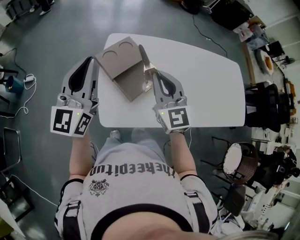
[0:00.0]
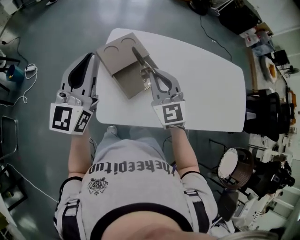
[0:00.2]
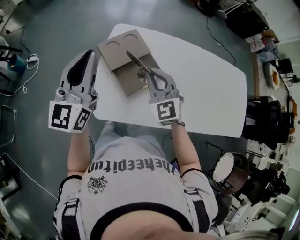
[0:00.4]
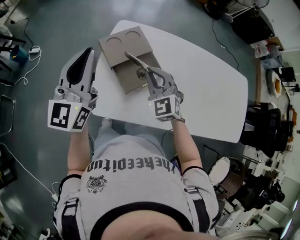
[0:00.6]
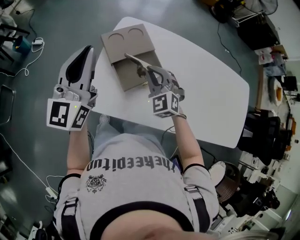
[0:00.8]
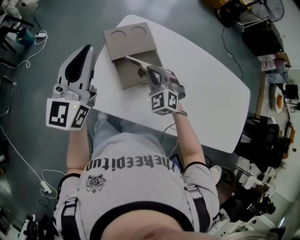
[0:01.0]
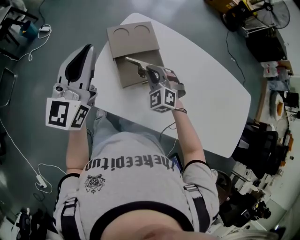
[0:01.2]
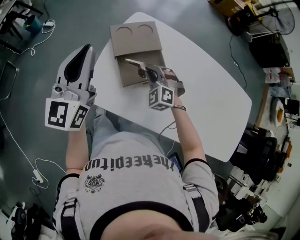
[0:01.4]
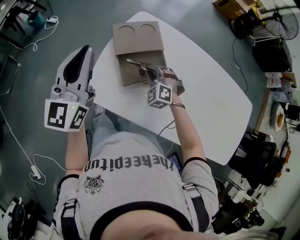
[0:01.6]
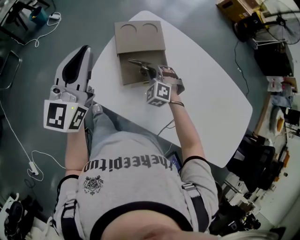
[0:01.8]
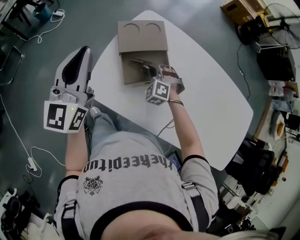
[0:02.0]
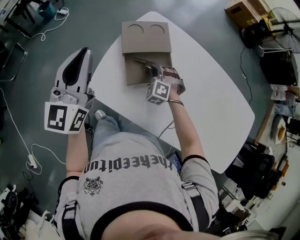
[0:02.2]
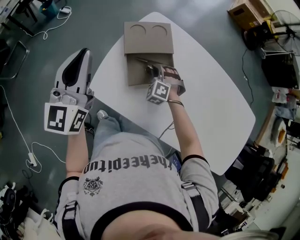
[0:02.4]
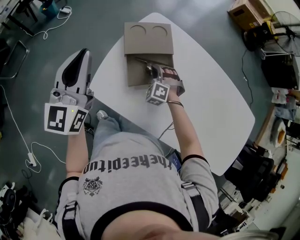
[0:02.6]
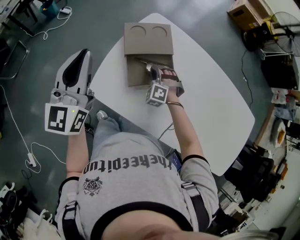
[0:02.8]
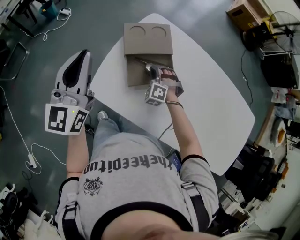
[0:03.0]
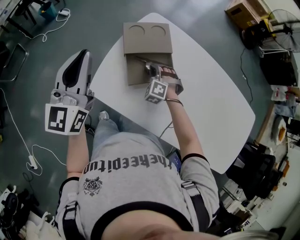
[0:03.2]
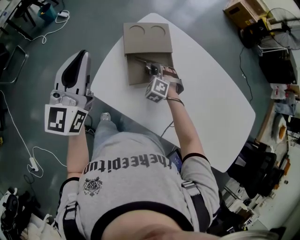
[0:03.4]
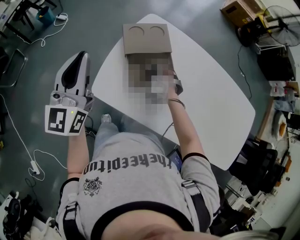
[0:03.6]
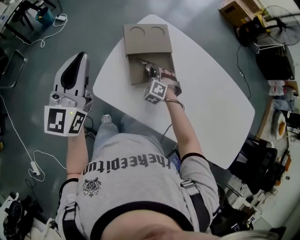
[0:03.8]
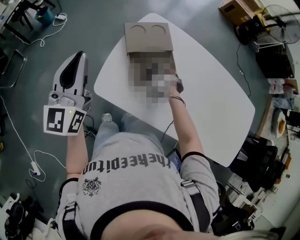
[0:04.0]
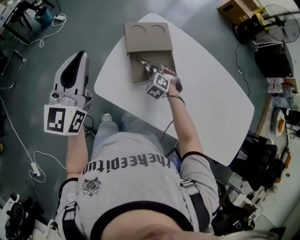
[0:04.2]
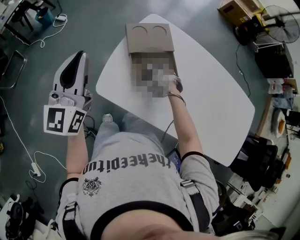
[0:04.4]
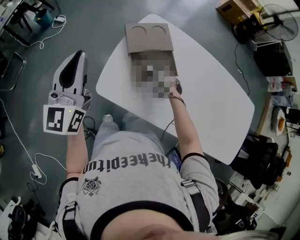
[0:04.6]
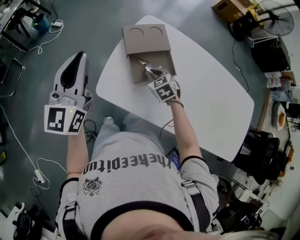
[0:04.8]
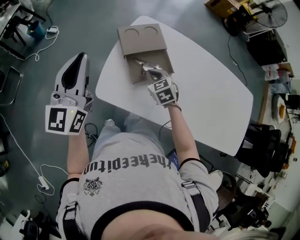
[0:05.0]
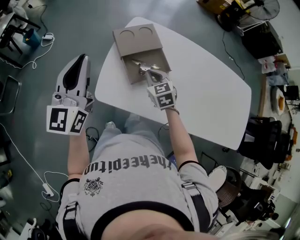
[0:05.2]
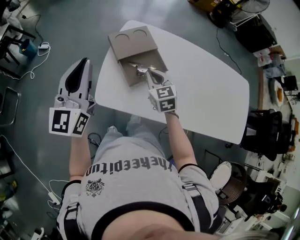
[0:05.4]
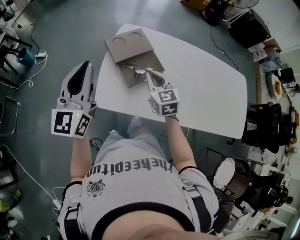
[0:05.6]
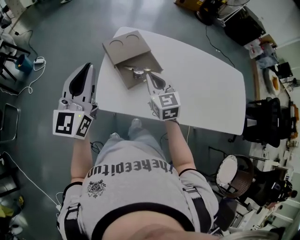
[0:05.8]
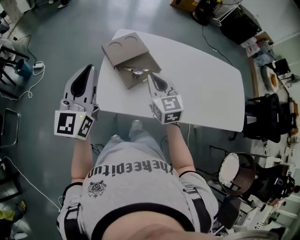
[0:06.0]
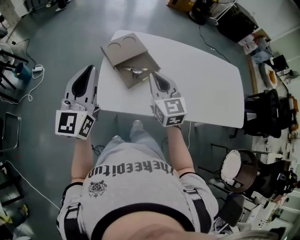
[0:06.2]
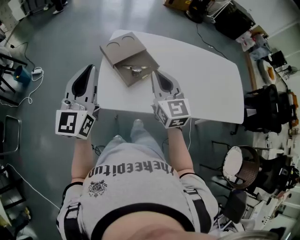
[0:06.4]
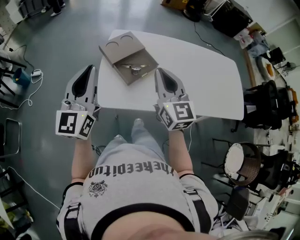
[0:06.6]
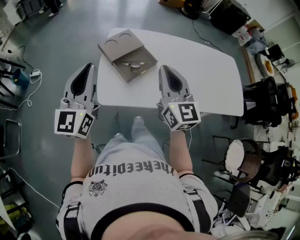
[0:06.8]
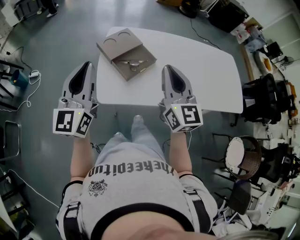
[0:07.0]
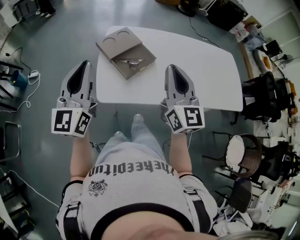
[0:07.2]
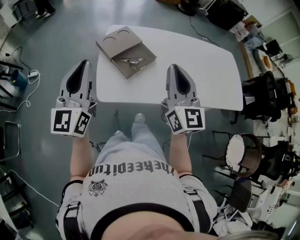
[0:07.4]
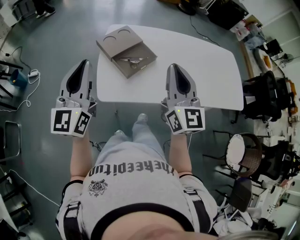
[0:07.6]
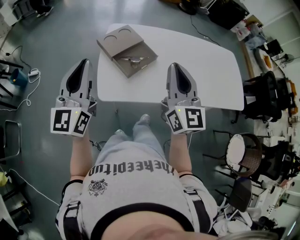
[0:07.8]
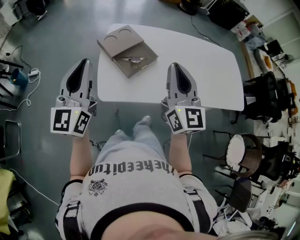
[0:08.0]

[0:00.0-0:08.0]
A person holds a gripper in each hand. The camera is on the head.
0:00.0 to 0:01.6: The left gripper moves approximately 5 cm, and turns by about 30 degrees. The right gripper shifts roughly 25 cm downward, and tilts its fingers about 40 degrees downward.
0:01.6 to 0:03.2: The right gripper travels downward by about 5 cm.
0:03.2 to 0:04.8: The left gripper shifts by approximately 5 cm; the right gripper shifts by roughly 5 cm, rolls clockwise, seen from behind, by about 50 degrees, and opens and closes again.
0:04.8 to 0:06.4: The right gripper is displaced upward and backward by approximately 30 cm, and angles its fingers upward, by about 40 degrees, while the left gripper is displaced backward by some 5 cm, and swivels roughly 20 degrees.
0:06.4 to 0:08.0: The right gripper shifts about 10 cm upward and backward.

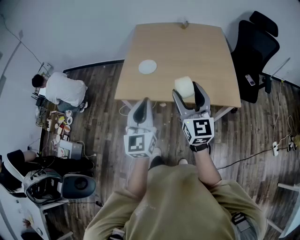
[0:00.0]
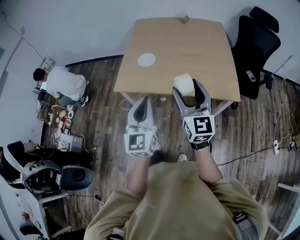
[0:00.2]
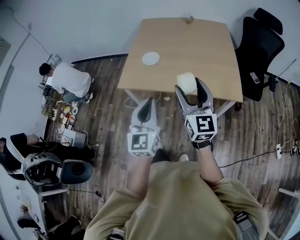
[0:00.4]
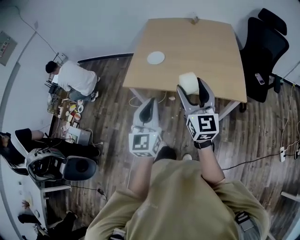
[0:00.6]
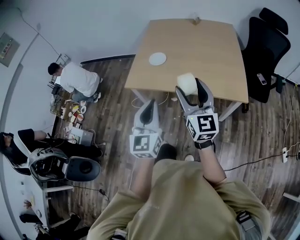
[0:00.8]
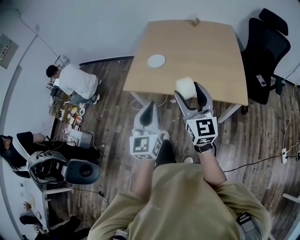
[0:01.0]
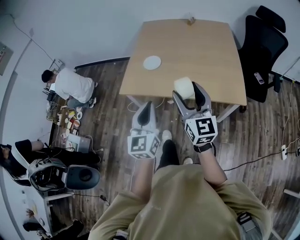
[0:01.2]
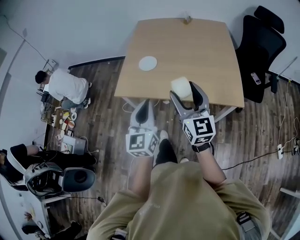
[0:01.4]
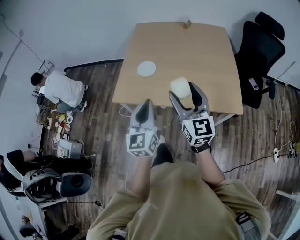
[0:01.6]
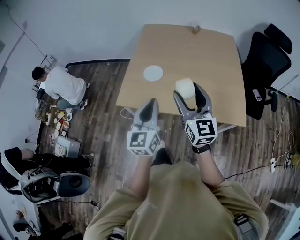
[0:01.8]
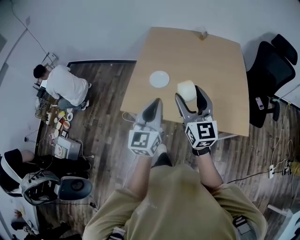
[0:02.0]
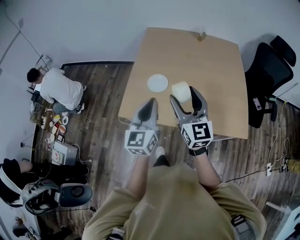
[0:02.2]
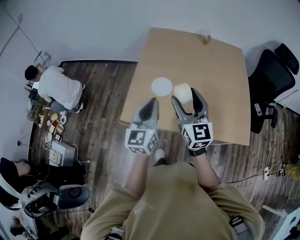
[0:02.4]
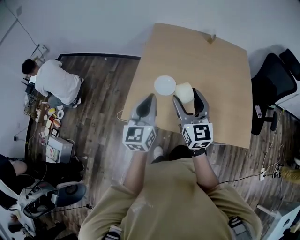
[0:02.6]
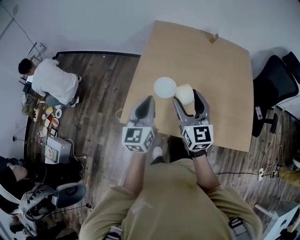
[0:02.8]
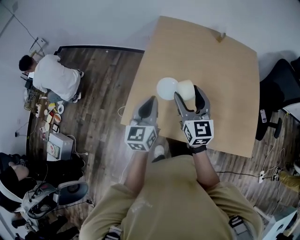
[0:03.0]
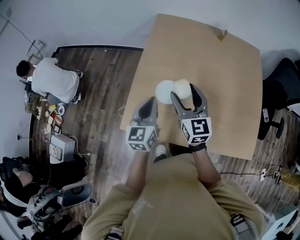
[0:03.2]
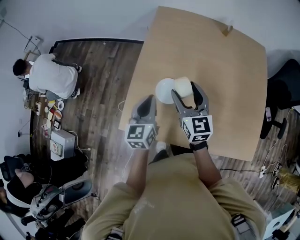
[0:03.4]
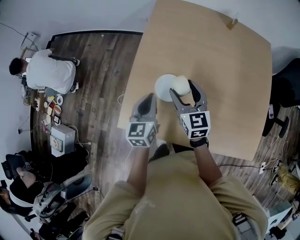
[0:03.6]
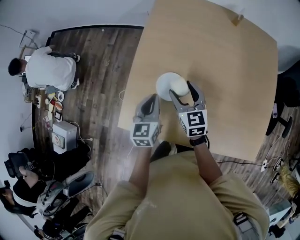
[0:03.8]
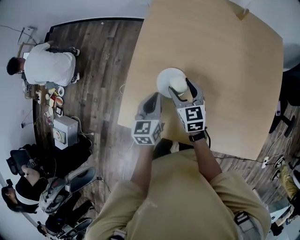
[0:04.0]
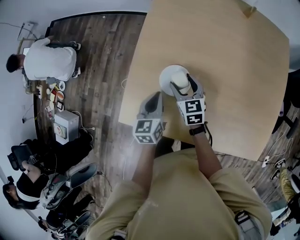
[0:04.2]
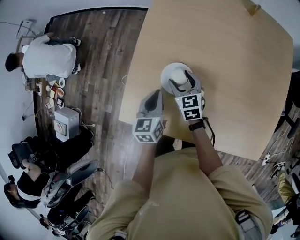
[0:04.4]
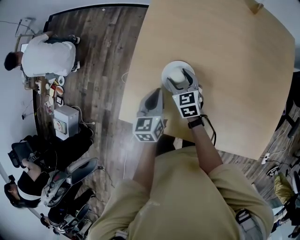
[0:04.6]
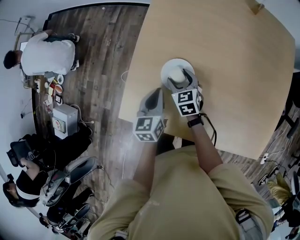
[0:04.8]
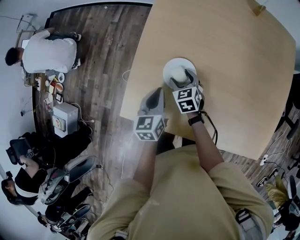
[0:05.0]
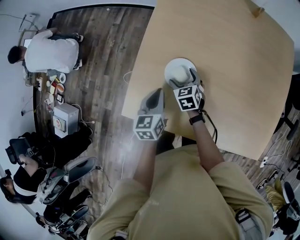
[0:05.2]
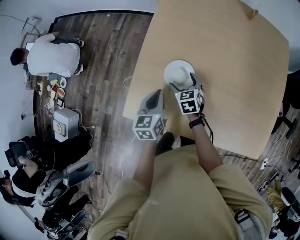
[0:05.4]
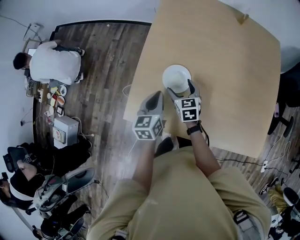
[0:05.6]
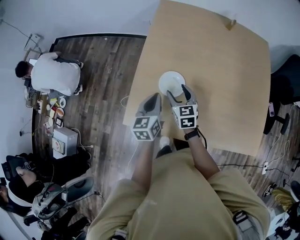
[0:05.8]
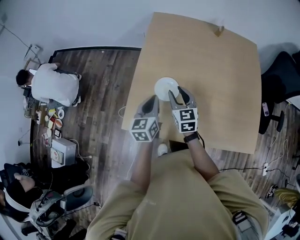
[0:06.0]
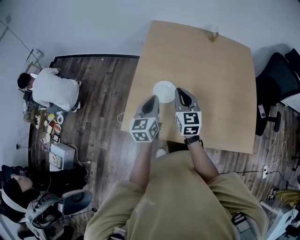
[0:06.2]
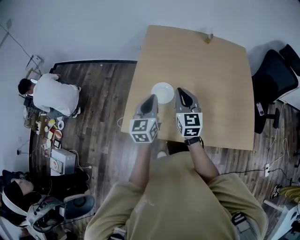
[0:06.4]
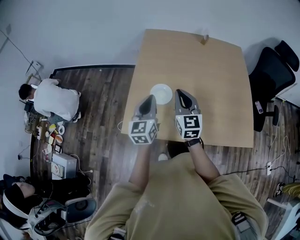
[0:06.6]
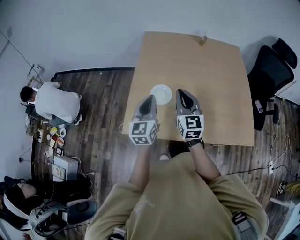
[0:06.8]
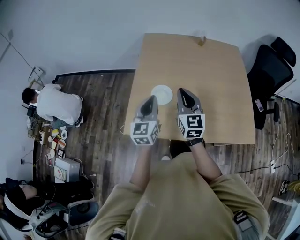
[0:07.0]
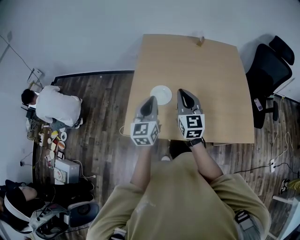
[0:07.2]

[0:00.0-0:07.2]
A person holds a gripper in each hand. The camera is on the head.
0:00.0 to 0:01.4: The left gripper moves about 10 cm backward and comes back.
0:01.4 to 0:02.8: The grippers both shift forward and to the left by roughly 35 cm.
0:02.8 to 0:04.4: Both grippers travel together downward and forward, approximately 35 cm. The right gripper tilts its fingers roughly 30 degrees downward. The left gripper swivels approximately 30 degrees.
0:04.4 to 0:05.8: The left gripper shifts some 10 cm upward. The right gripper is displaced upward and backward by approximately 10 cm.
0:05.8 to 0:07.2: The two grippers go about 20 cm upward and backward. The right gripper swivels roughly 30 degrees, and closes its fingers, while the left gripper changes its angle by approximately 20 degrees.

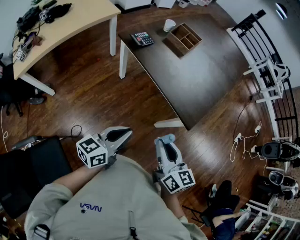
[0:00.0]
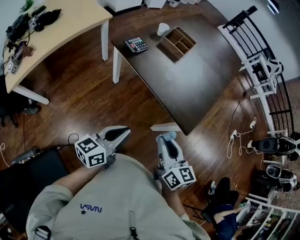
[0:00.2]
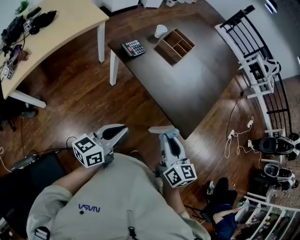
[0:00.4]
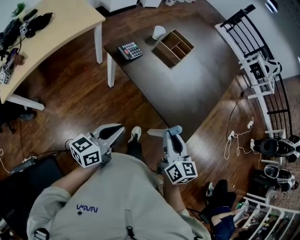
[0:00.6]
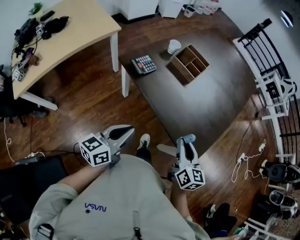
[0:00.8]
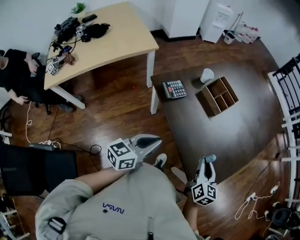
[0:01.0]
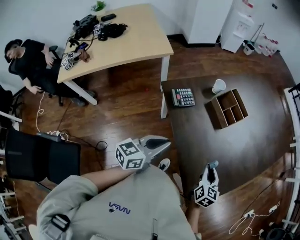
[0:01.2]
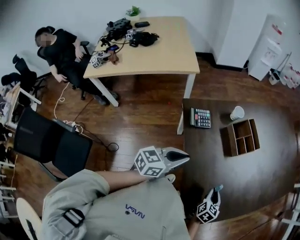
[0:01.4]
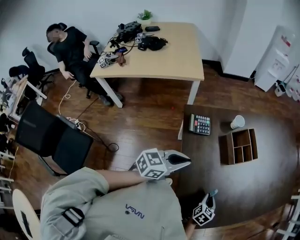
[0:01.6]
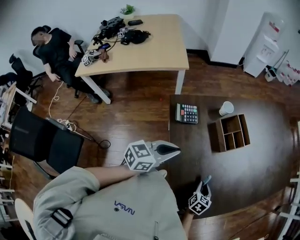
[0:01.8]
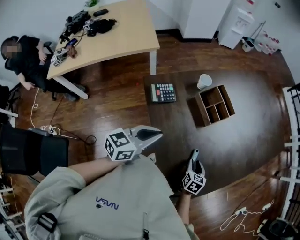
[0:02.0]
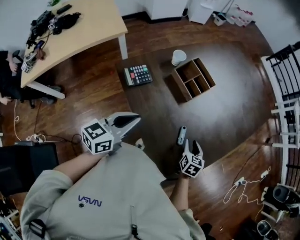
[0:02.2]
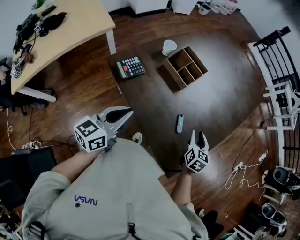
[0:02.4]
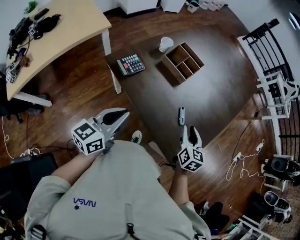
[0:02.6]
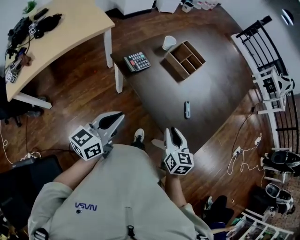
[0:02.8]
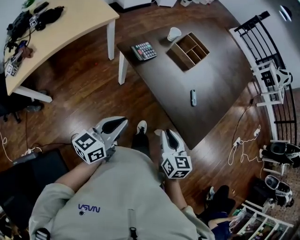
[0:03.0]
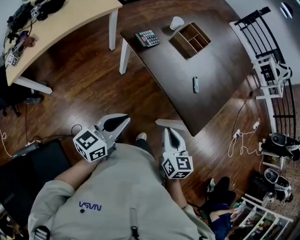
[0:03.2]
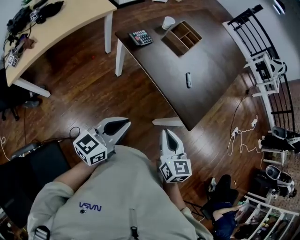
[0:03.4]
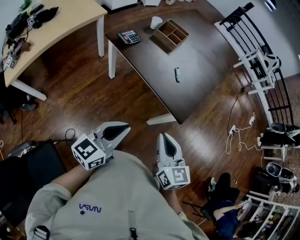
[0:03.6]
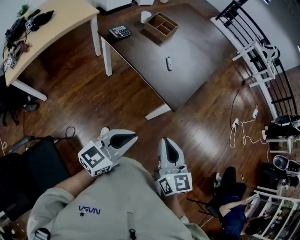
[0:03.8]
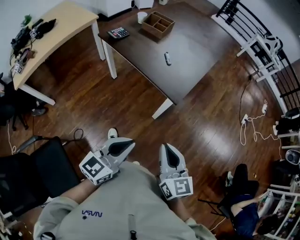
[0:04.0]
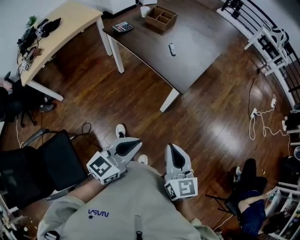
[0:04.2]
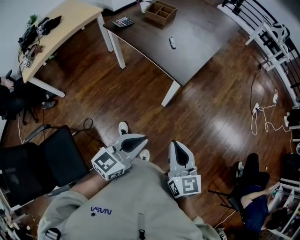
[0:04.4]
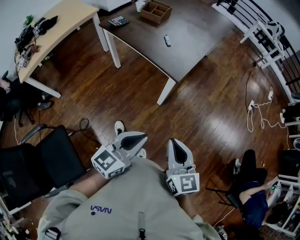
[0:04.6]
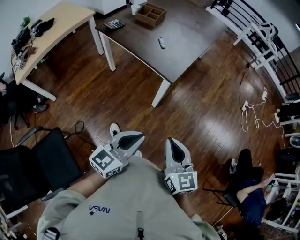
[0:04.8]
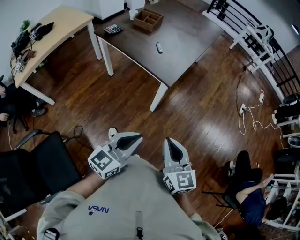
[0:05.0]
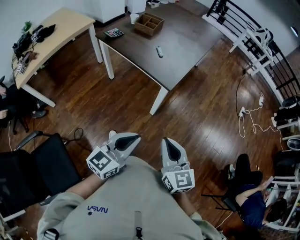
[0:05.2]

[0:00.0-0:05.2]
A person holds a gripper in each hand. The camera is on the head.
0:00.0 to 0:01.8: The right gripper goes roughly 50 cm forward and downward, and tips its fingers downward by roughly 30 degrees. The left gripper is displaced forward by some 35 cm, and changes its angle by approximately 20 degrees.
0:01.8 to 0:03.4: The left gripper heads backward, covering some 30 cm. The right gripper moves backward, upward and to the left, roughly 40 cm, and swivels roughly 20 degrees.
0:03.4 to 0:05.2: The right gripper goes roughly 30 cm backward and to the right. Meanwhile the left gripper is displaced to the right and backward by approximately 30 cm.

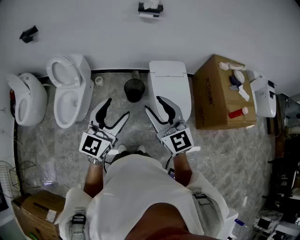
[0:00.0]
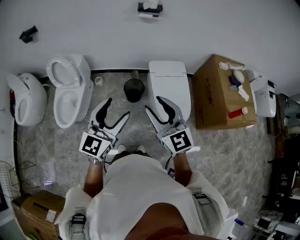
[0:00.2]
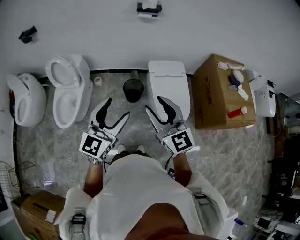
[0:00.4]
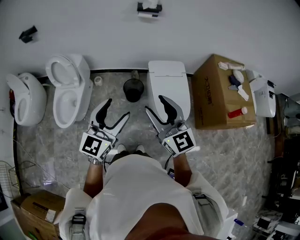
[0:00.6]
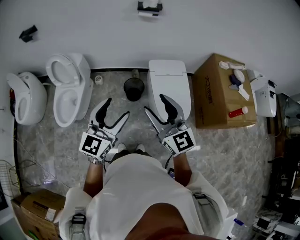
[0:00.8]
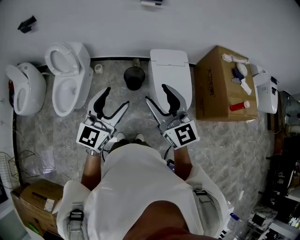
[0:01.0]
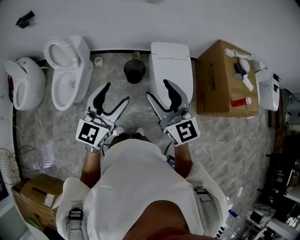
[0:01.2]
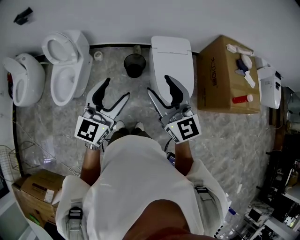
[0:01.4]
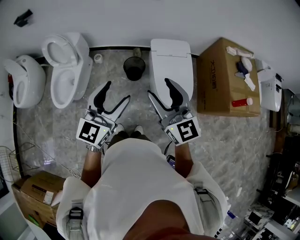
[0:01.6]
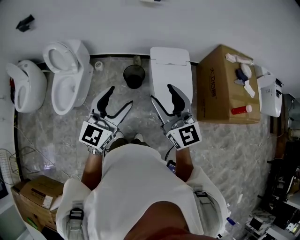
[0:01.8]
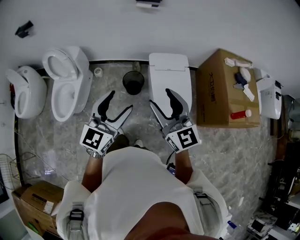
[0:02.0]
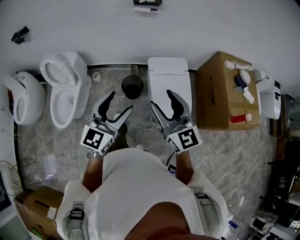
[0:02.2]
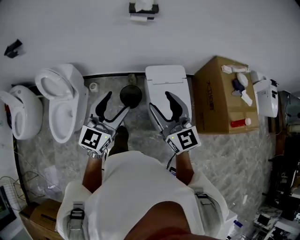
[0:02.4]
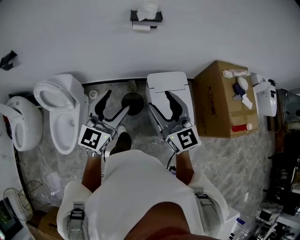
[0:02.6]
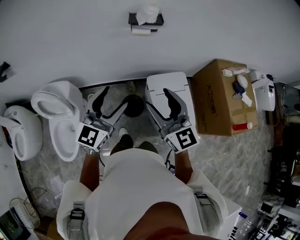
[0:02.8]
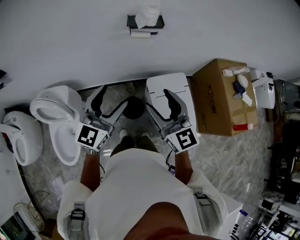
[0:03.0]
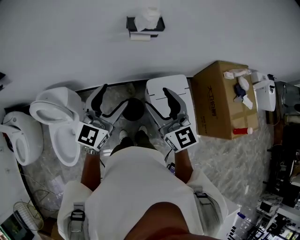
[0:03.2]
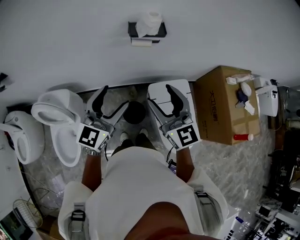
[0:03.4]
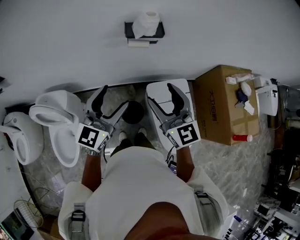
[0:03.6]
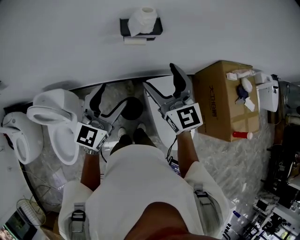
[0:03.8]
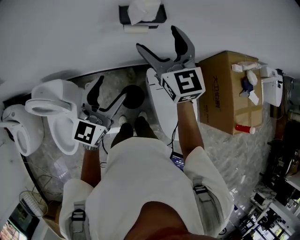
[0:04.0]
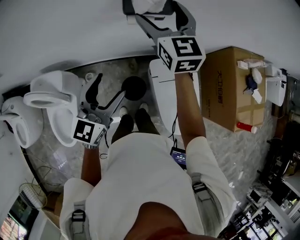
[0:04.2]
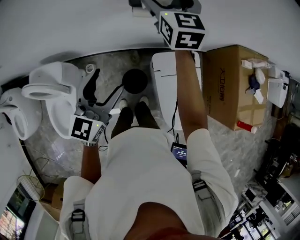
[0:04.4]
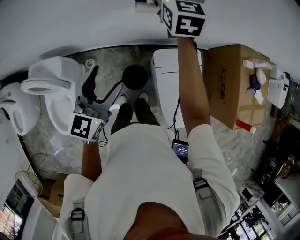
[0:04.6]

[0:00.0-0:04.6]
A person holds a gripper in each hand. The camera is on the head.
0:00.0 to 0:01.6: The right gripper changes place by some 5 cm.
0:01.6 to 0:03.0: Both grippers move forward, roughly 35 cm.
0:03.0 to 0:04.6: The right gripper heads forward, covering approximately 40 cm; the left gripper moves forward and downward, some 15 cm.
